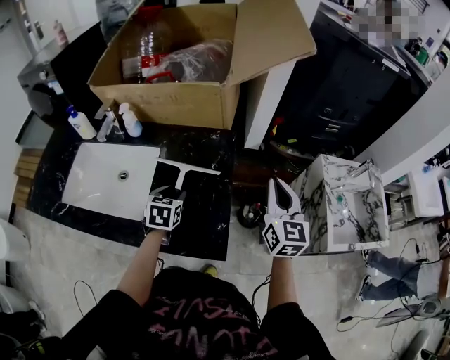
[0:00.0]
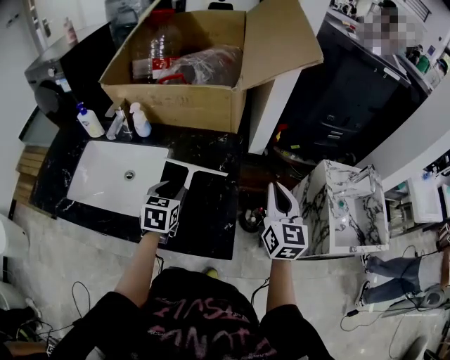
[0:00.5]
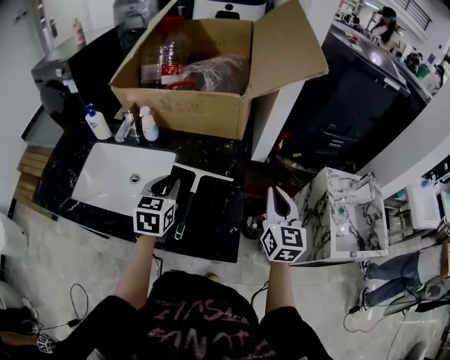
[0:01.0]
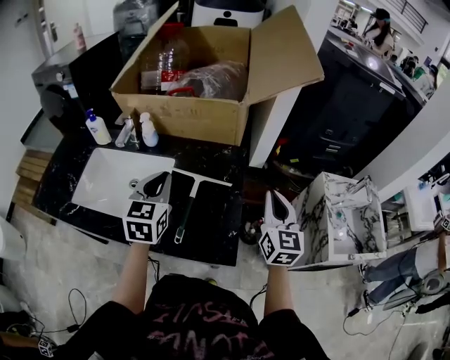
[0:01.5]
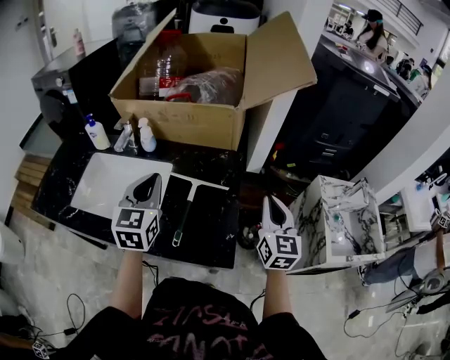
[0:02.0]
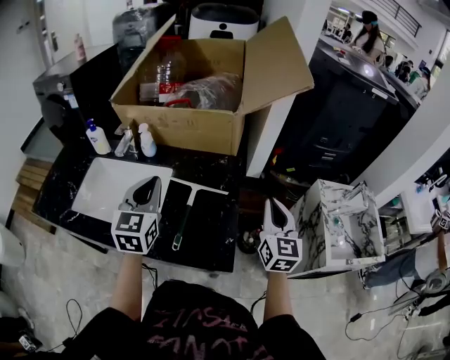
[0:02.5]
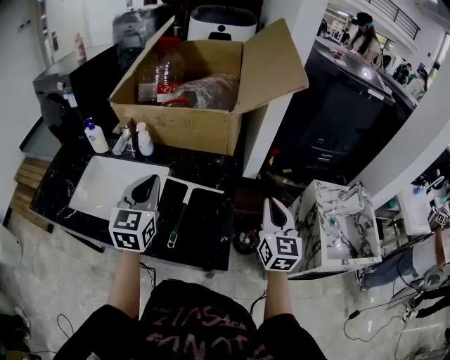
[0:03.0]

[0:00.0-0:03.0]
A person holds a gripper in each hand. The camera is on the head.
0:00.0 to 0:01.5: The right gripper moves approximately 5 cm; the left gripper moves upward, about 20 cm, swivels approximately 30 degrees, and closes.
0:01.5 to 0:03.0: The grippers make only small movements.

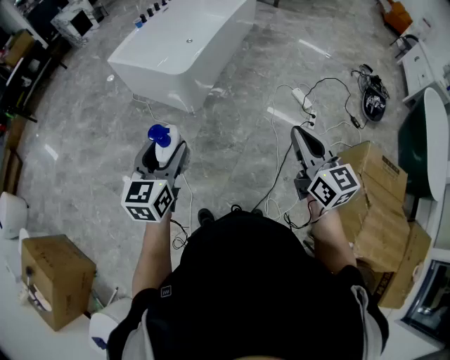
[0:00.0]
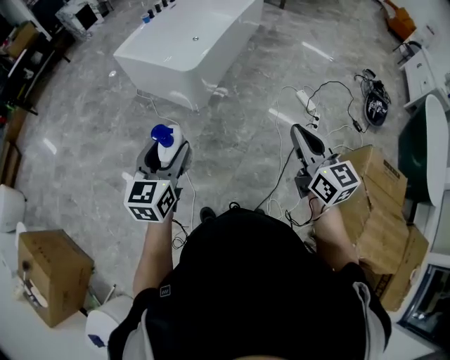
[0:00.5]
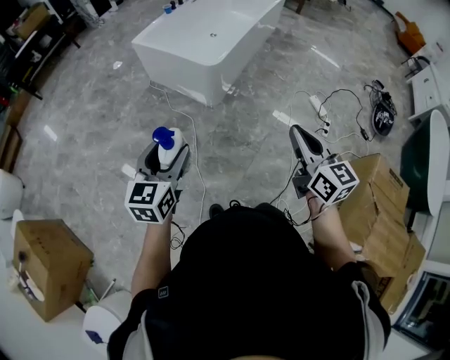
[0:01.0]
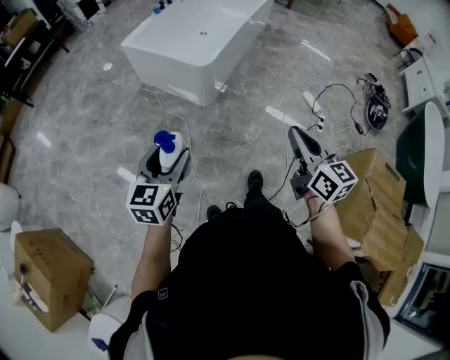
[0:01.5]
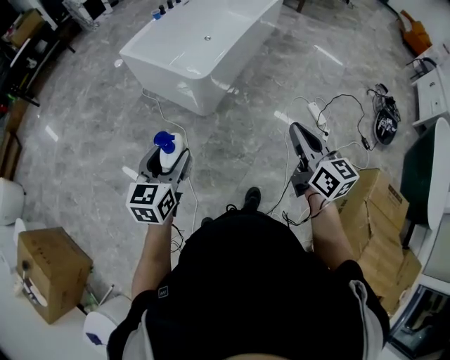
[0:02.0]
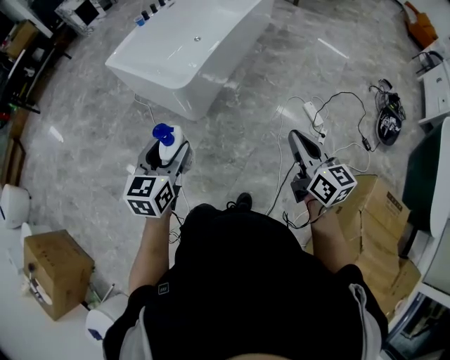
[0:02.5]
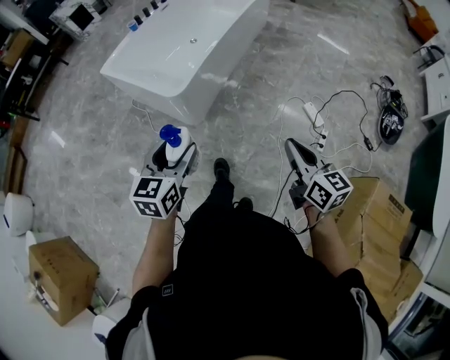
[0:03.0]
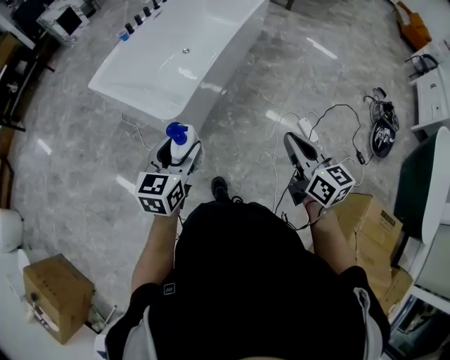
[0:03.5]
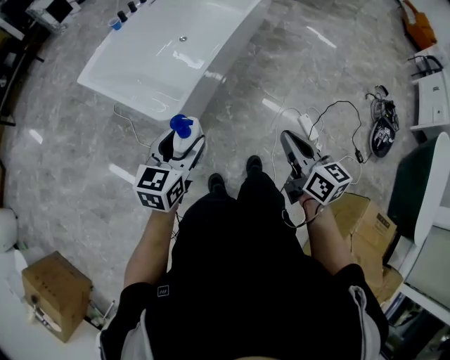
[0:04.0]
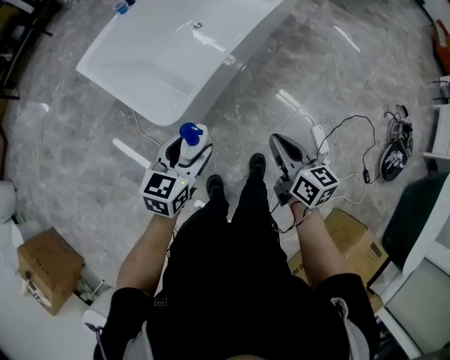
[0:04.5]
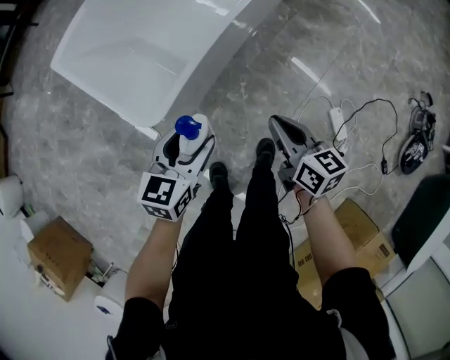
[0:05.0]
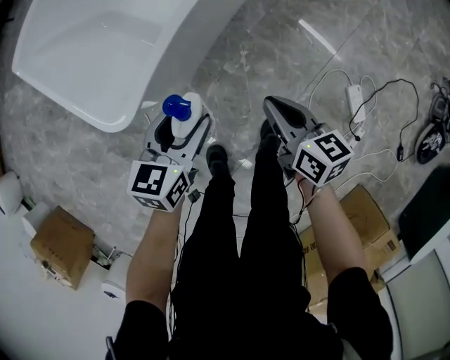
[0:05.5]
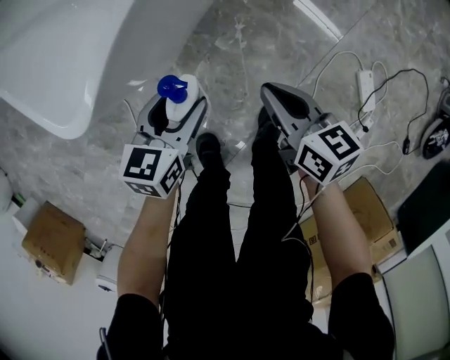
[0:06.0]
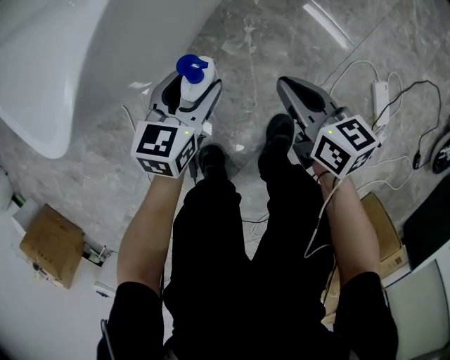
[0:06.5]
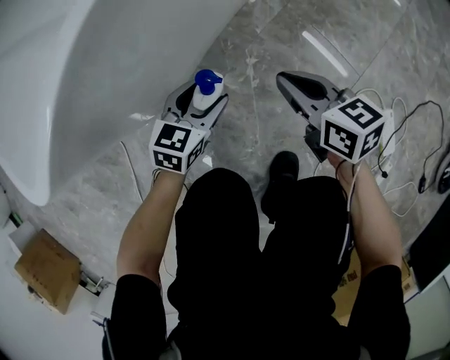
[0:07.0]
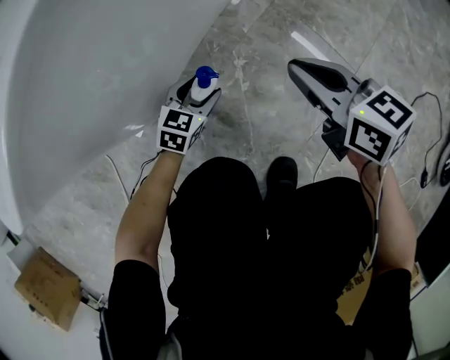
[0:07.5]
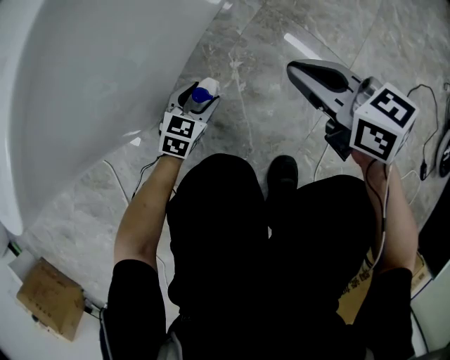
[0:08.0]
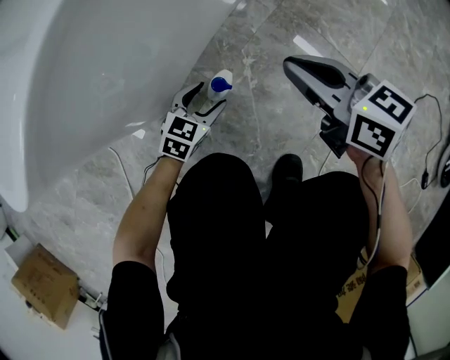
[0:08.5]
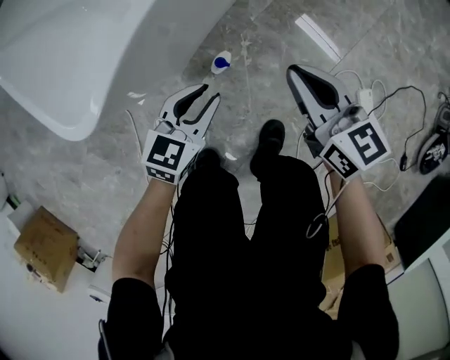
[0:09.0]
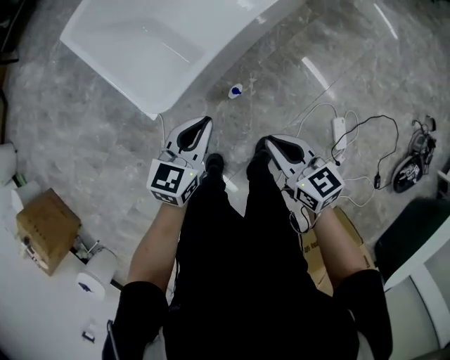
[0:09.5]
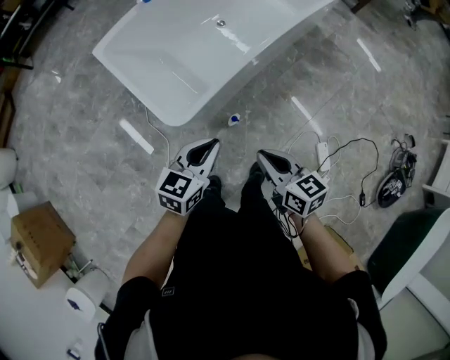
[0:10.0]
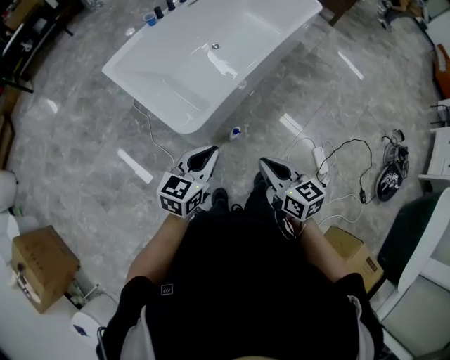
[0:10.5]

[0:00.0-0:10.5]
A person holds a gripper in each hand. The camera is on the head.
0:00.0 to 0:02.0: The two grippers go about 15 cm forward and to the left.
0:02.0 to 0:04.0: The left gripper travels forward and to the right by roughly 40 cm. The right gripper travels forward by approximately 35 cm.
0:04.0 to 0:06.5: The left gripper travels downward by roughly 60 cm, while the right gripper goes approximately 60 cm downward and forward, and rotates roughly 30 degrees.
0:06.5 to 0:08.5: The left gripper is displaced downward by roughly 20 cm. The right gripper moves forward, approximately 5 cm.
0:08.5 to 0:10.5: The left gripper goes approximately 80 cm upward, turns by about 20 degrees, and closes its fingers. Meanwhile the right gripper goes some 60 cm upward and backward.

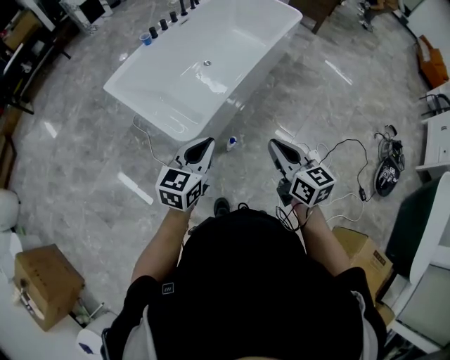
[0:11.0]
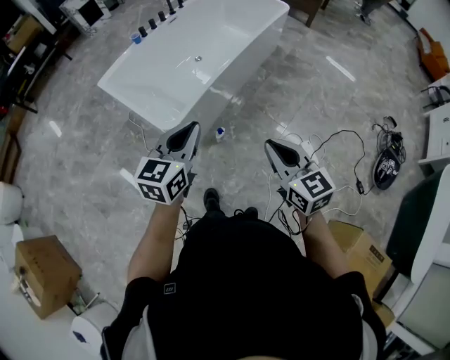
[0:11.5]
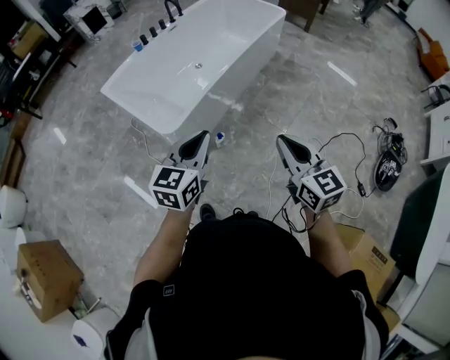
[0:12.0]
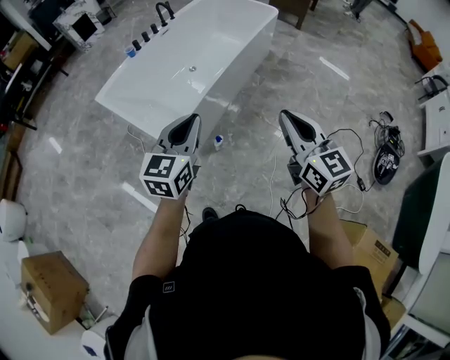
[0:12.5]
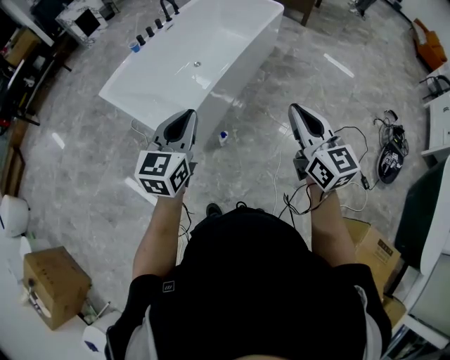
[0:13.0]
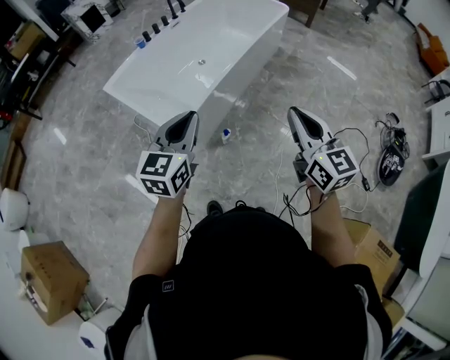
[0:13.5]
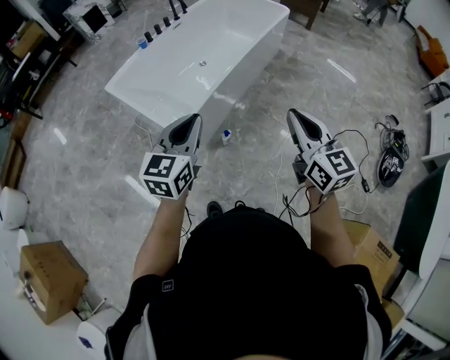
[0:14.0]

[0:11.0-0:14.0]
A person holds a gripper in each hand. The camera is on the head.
0:11.0 to 0:12.5: The right gripper heads to the right and upward, covering some 20 cm; the left gripper moves upward and to the right, about 15 cm.
0:12.5 to 0:14.0: The left gripper moves about 5 cm.

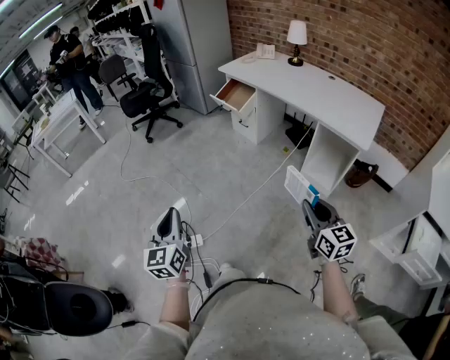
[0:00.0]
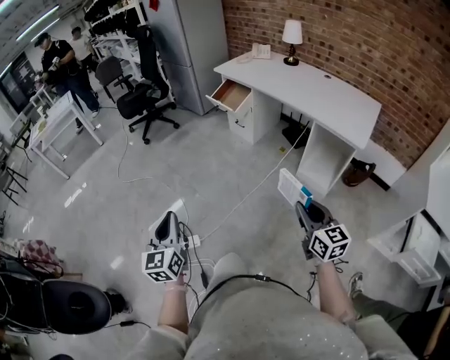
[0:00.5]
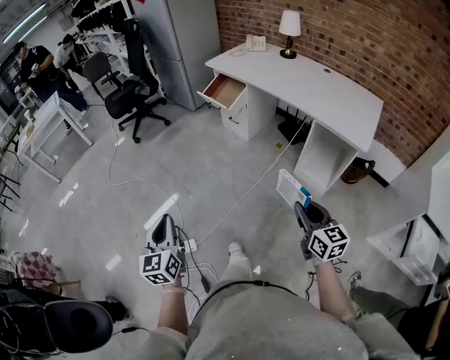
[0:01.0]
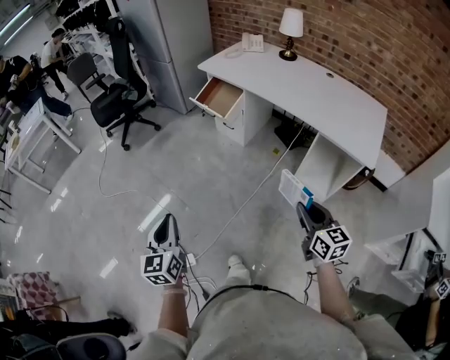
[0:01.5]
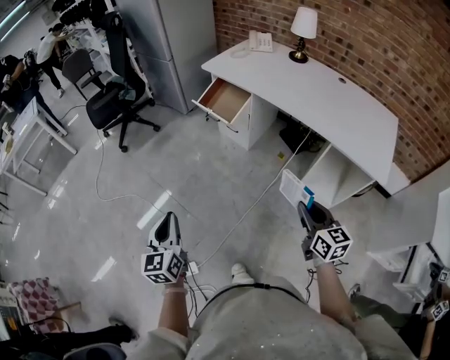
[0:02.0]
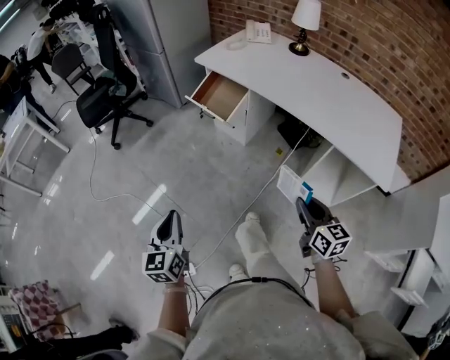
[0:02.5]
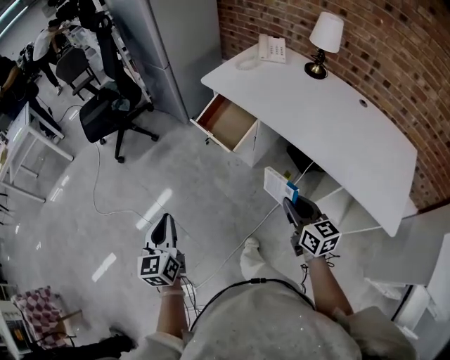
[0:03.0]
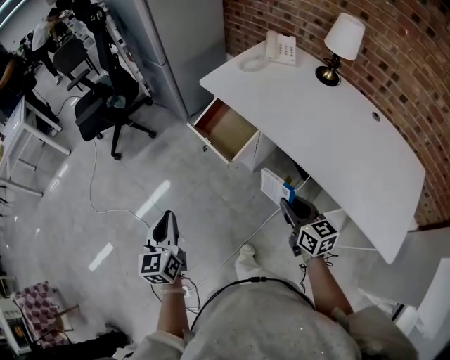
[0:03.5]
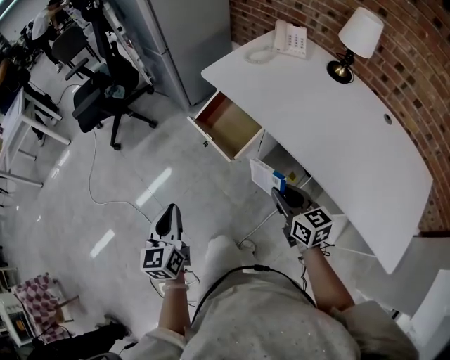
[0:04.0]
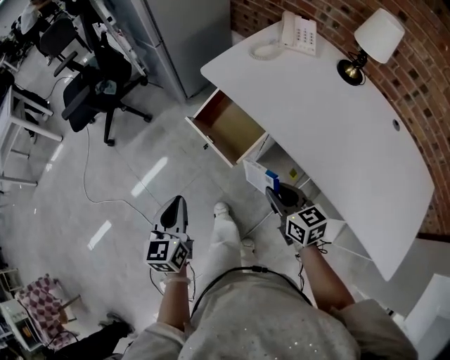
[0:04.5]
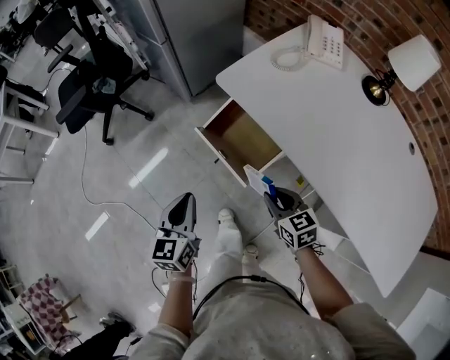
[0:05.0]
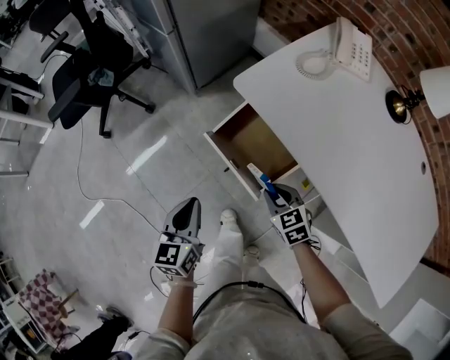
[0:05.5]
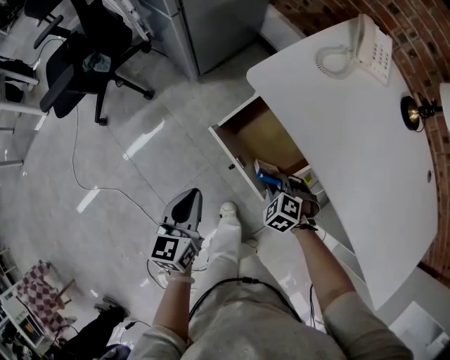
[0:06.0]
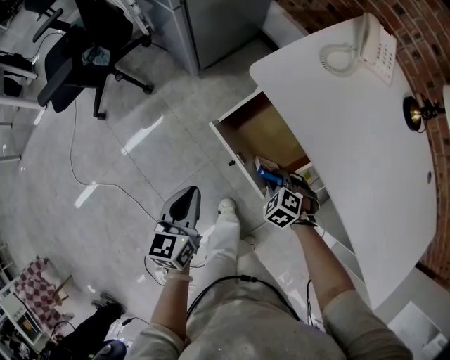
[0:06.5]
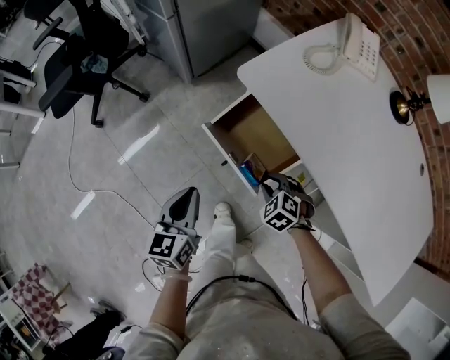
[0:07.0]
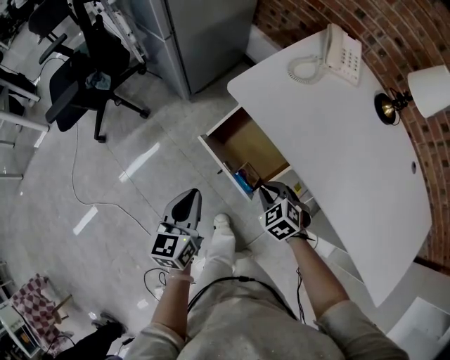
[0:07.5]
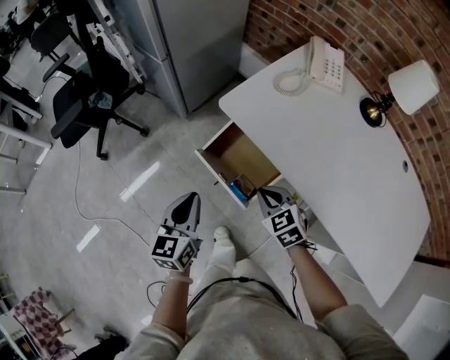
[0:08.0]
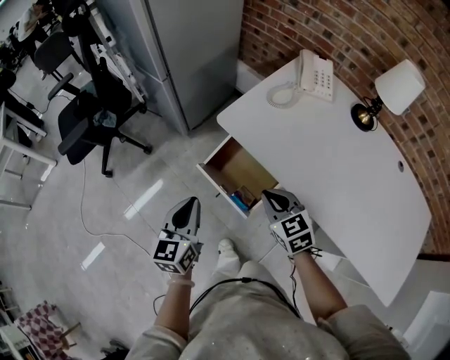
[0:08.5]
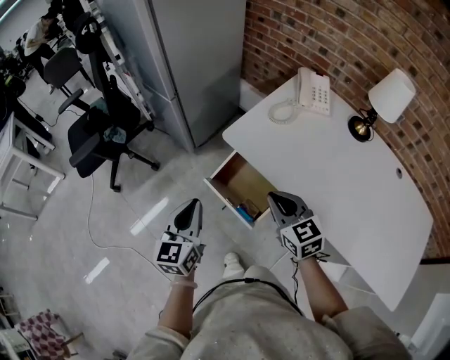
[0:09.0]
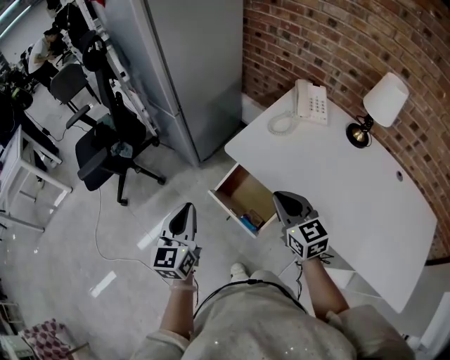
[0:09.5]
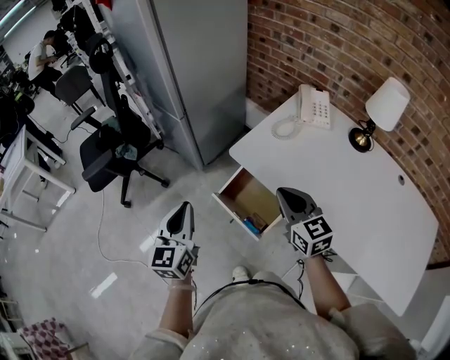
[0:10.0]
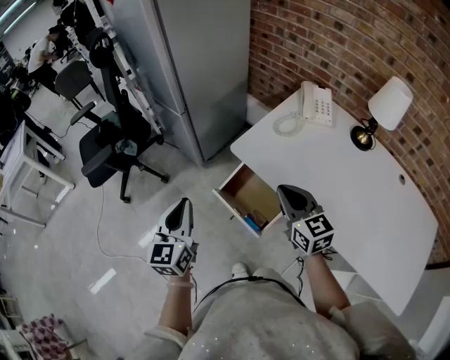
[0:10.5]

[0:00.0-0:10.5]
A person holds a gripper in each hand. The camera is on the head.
0:00.0 to 0:02.0: The grippers both shift forward by roughly 30 cm.
0:02.0 to 0:04.0: The grippers both shift forward by roughly 35 cm.
0:04.0 to 0:06.5: The right gripper heads downward and forward, covering roughly 35 cm, and angles its fingers downward, by some 50 degrees; the left gripper shifts some 30 cm forward and downward.
0:06.5 to 0:08.5: The left gripper heads upward, covering approximately 10 cm. Meanwhile the right gripper goes some 25 cm upward, angles its fingers upward, by roughly 40 degrees, and closes its fingers.
0:08.5 to 0:10.5: The left gripper heads upward and to the left, covering about 10 cm. The right gripper travels upward by about 10 cm, and rotates approximately 20 degrees.
